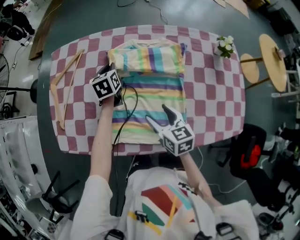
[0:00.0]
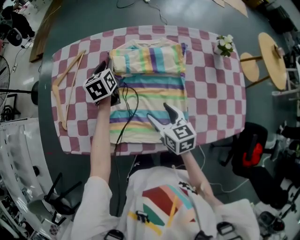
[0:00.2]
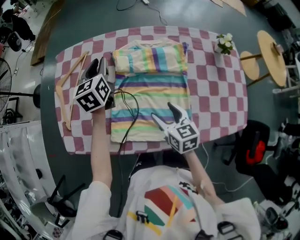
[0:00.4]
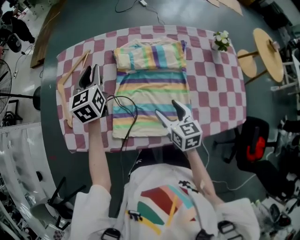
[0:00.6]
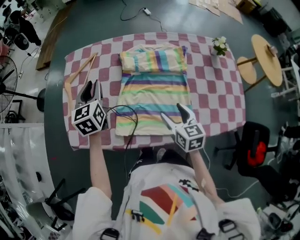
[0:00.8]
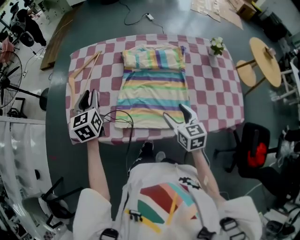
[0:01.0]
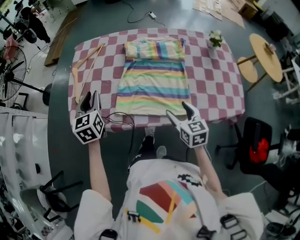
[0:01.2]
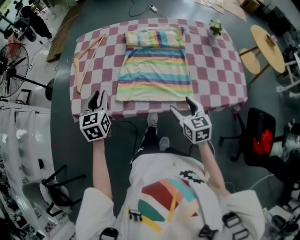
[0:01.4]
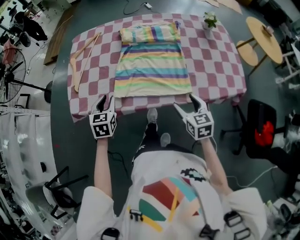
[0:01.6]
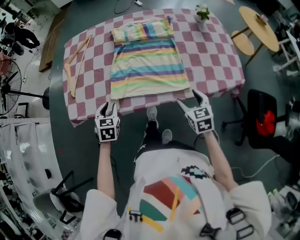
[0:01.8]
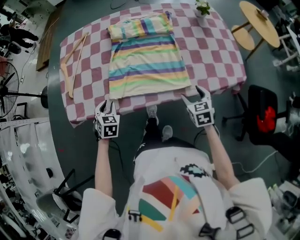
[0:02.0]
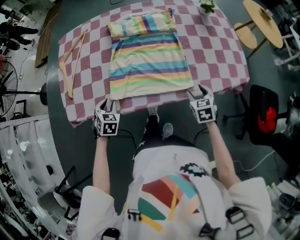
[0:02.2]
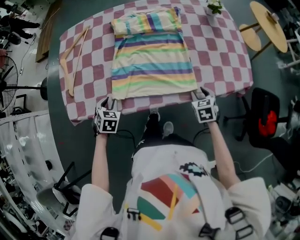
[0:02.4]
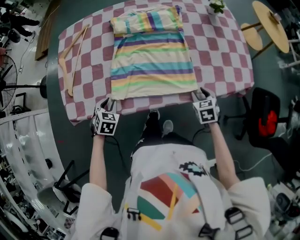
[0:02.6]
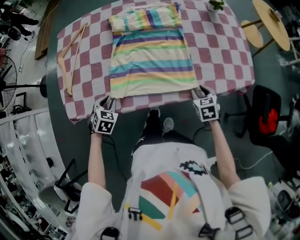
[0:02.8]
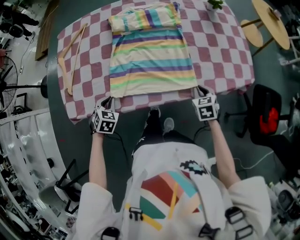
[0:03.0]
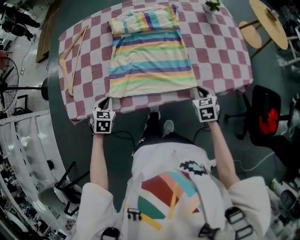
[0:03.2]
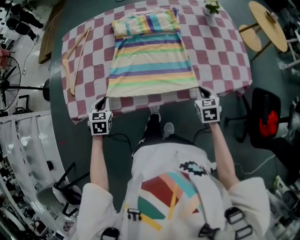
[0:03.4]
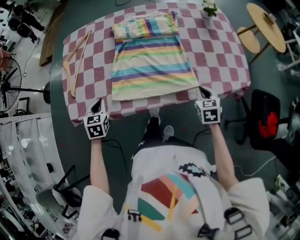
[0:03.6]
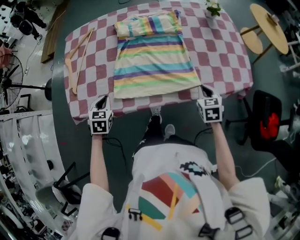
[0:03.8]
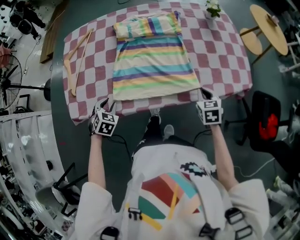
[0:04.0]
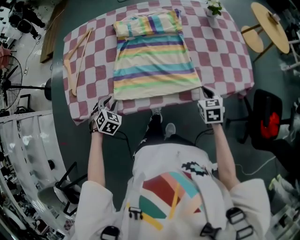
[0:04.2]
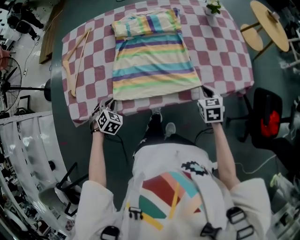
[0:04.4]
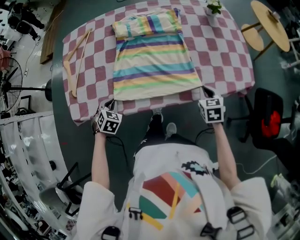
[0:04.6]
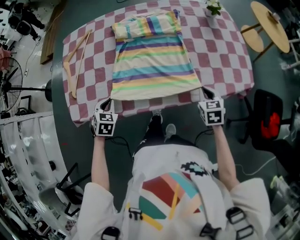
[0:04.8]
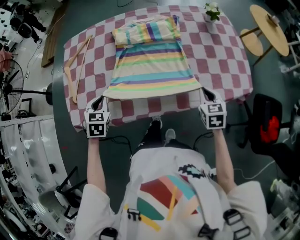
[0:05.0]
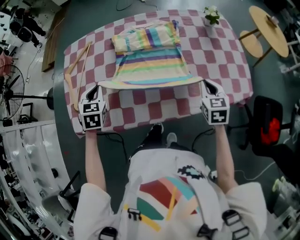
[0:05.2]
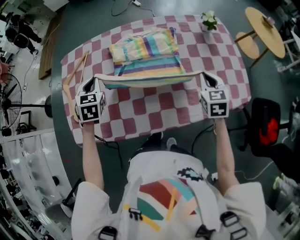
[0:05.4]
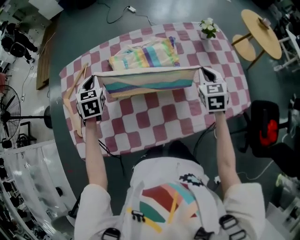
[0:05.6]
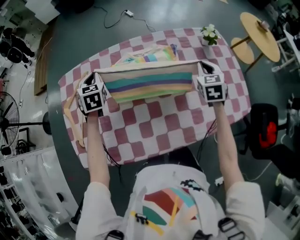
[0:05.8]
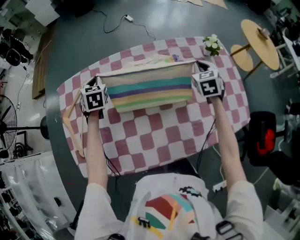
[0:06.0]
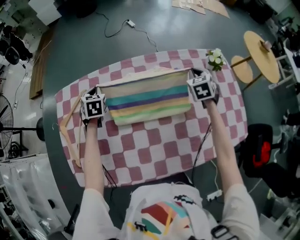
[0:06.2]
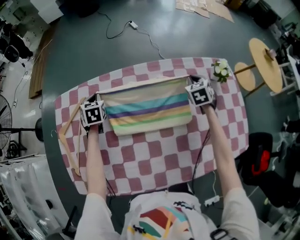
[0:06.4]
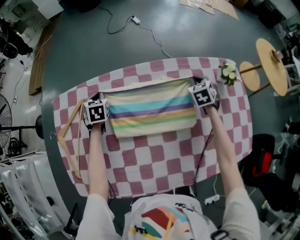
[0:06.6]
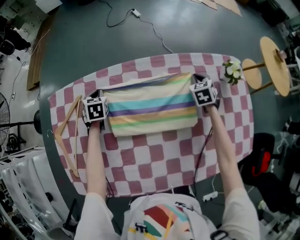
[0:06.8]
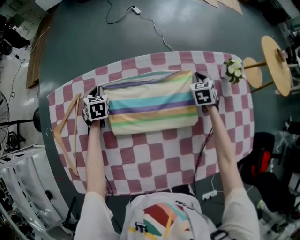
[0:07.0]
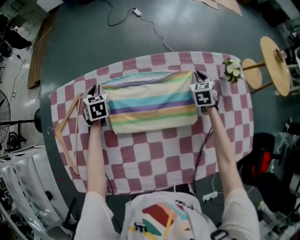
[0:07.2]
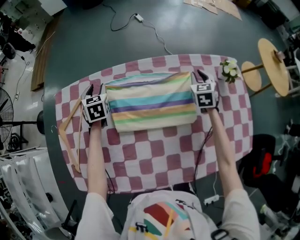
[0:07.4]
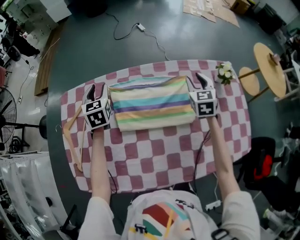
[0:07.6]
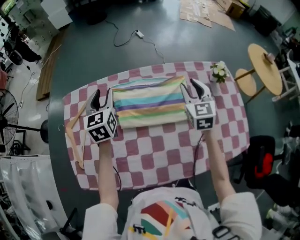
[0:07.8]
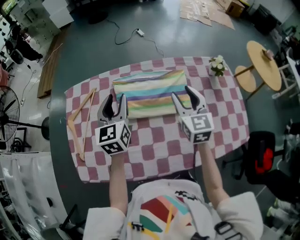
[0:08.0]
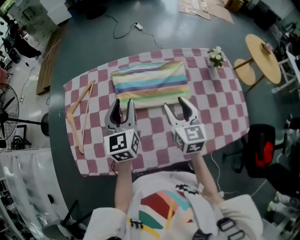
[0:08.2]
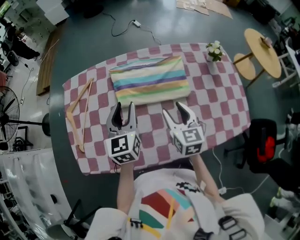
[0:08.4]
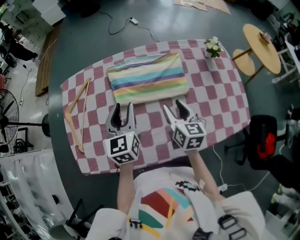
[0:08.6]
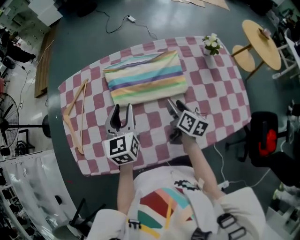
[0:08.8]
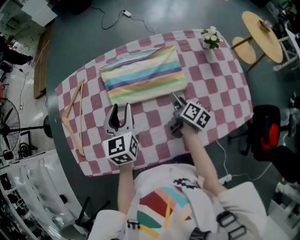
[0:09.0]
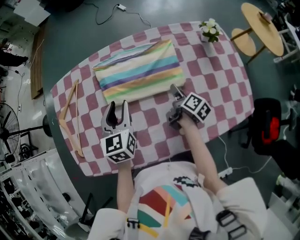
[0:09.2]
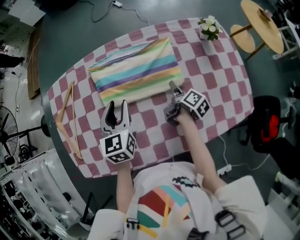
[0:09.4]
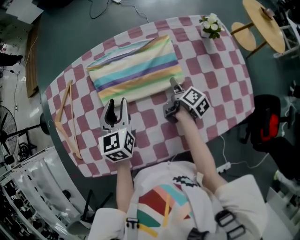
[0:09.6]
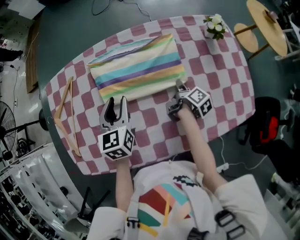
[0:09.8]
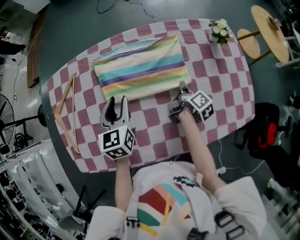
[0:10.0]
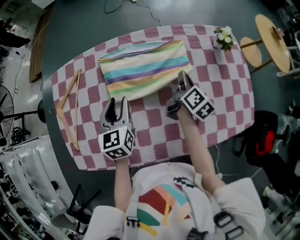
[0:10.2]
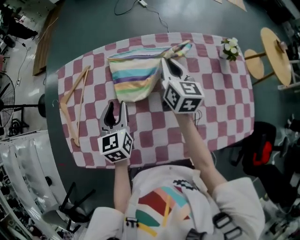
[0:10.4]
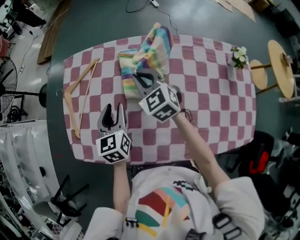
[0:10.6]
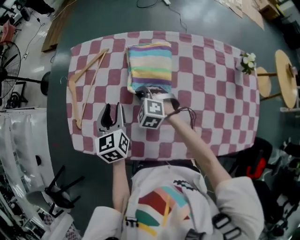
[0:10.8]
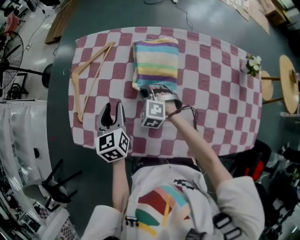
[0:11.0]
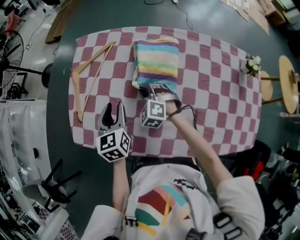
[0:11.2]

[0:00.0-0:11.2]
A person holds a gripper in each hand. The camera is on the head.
0.0 to 1.6 s: The left gripper is displaced backward and to the left by roughly 40 cm, and swivels some 20 degrees. The right gripper shifts roughly 25 cm backward.
1.6 to 3.2 s: The left gripper moves downward, some 10 cm, and turns by approximately 20 degrees; the right gripper heads to the right and downward, covering approximately 10 cm, rotates roughly 20 degrees, and closes up.
3.2 to 4.8 s: The left gripper moves up and down over some 5 cm, changing direction 2 times, and opens and closes again.
4.8 to 6.4 s: The pair of grippers is taken forward, some 50 cm. The left gripper rotates about 20 degrees.
6.4 to 8.0 s: The right gripper travels backward, upward and to the left by some 25 cm, tilts its fingers approximately 30 degrees upward, and opens up. Meanwhile the left gripper shifts some 25 cm upward, backward and to the right, tilts its fingers approximately 30 degrees upward, and opens.
8.0 to 9.6 s: The left gripper heads downward and to the right, covering approximately 10 cm, while the right gripper heads downward, covering approximately 25 cm, and twists approximately 80 degrees clockwise, seen from behind.
9.6 to 11.2 s: The left gripper moves some 20 cm, and swivels about 30 degrees, while the right gripper travels upward and back again, approximately 20 cm each way, twists about 140 degrees counterclockwise, seen from behind, and closes up.

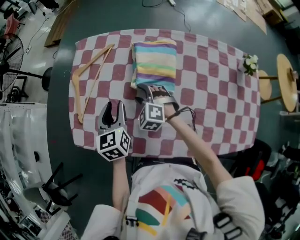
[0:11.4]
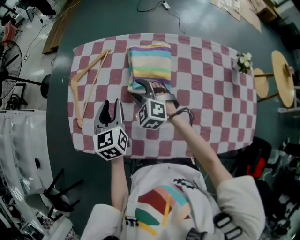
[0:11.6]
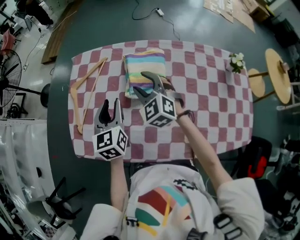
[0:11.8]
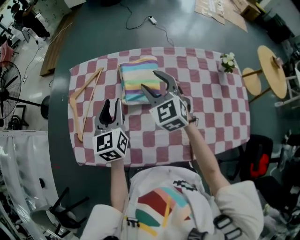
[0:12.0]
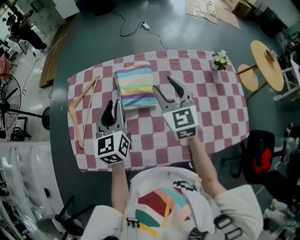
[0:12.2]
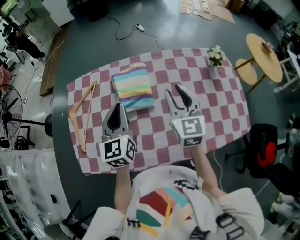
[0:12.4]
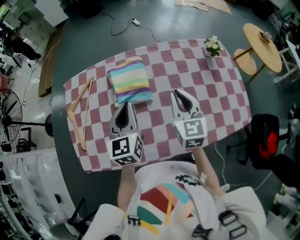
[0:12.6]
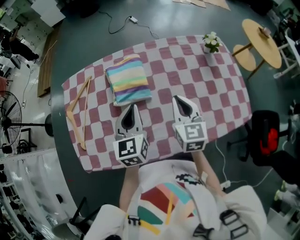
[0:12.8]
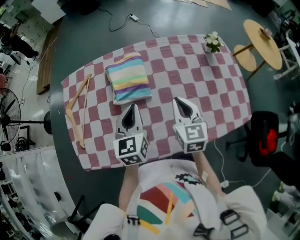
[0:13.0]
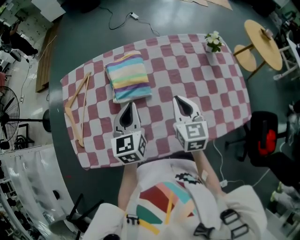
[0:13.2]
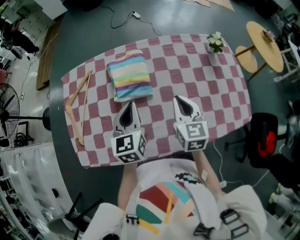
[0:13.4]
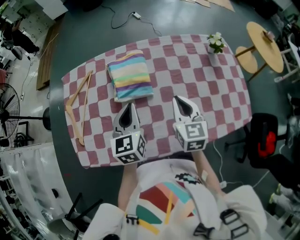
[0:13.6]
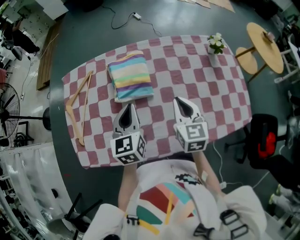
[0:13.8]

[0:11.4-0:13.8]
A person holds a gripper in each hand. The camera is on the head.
11.4 to 12.6 s: The right gripper moves about 30 cm, tilts its fingers some 30 degrees upward, and closes its fingers; the left gripper changes place by roughly 20 cm, turns by about 30 degrees, and closes up.
12.6 to 13.8 s: The right gripper ends up some 5 cm from where it was.

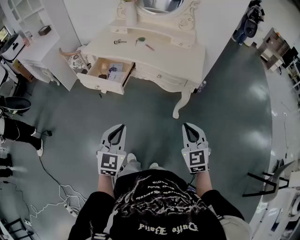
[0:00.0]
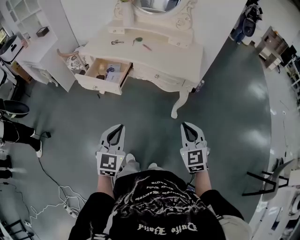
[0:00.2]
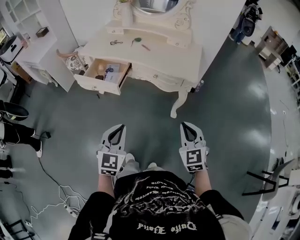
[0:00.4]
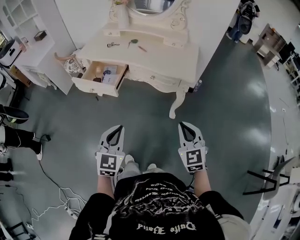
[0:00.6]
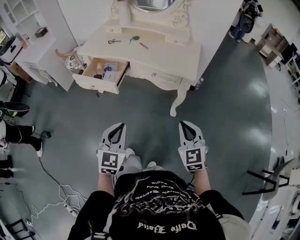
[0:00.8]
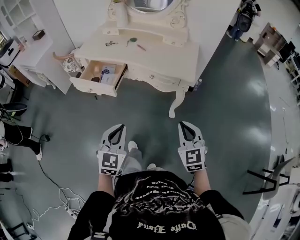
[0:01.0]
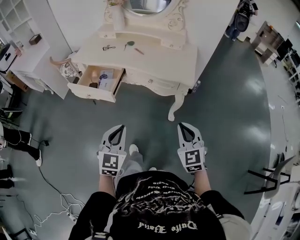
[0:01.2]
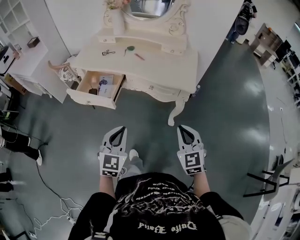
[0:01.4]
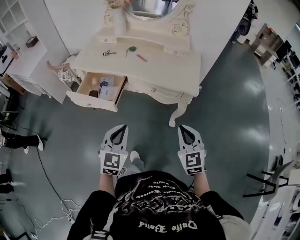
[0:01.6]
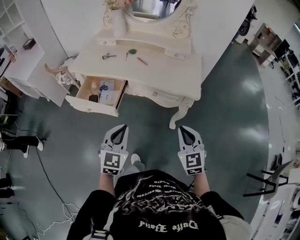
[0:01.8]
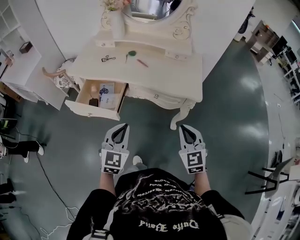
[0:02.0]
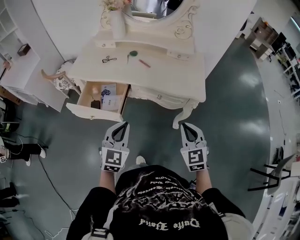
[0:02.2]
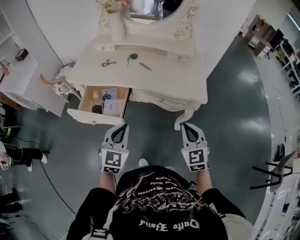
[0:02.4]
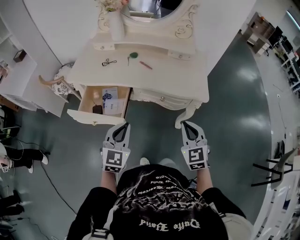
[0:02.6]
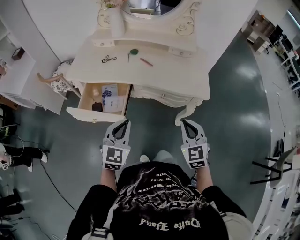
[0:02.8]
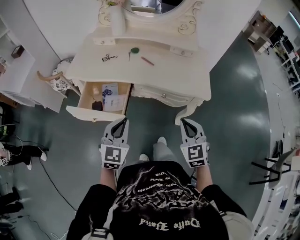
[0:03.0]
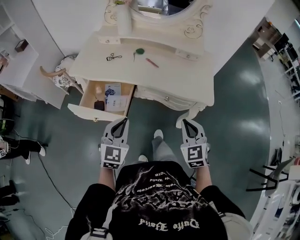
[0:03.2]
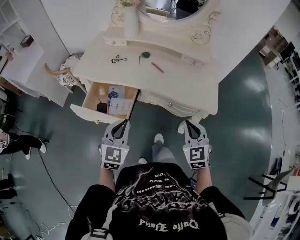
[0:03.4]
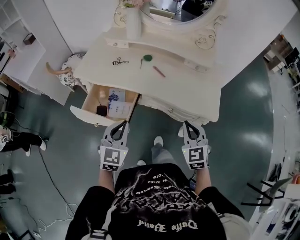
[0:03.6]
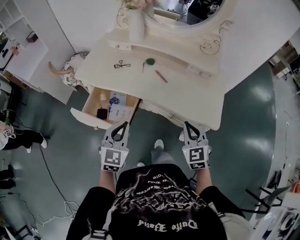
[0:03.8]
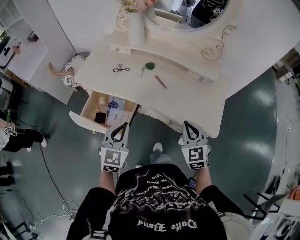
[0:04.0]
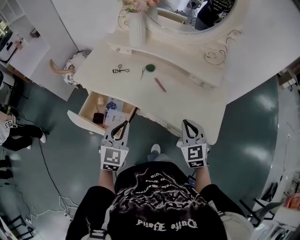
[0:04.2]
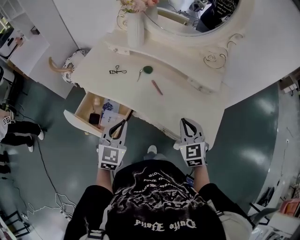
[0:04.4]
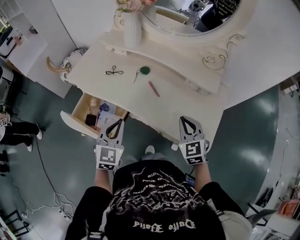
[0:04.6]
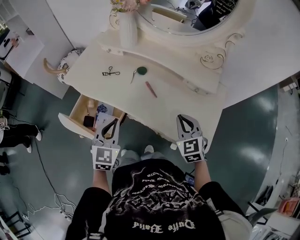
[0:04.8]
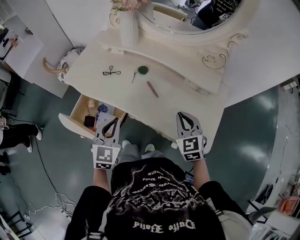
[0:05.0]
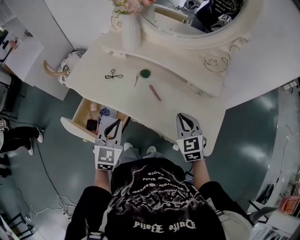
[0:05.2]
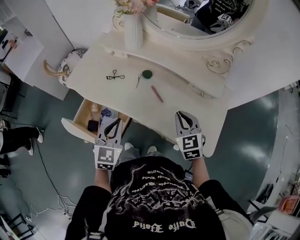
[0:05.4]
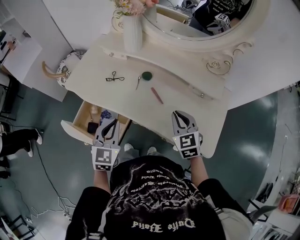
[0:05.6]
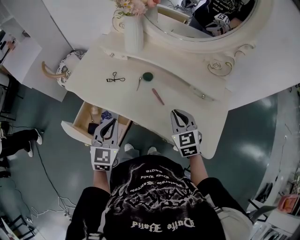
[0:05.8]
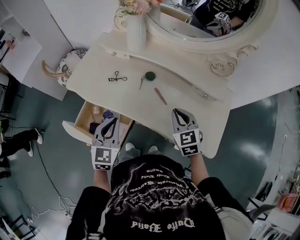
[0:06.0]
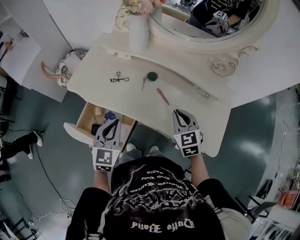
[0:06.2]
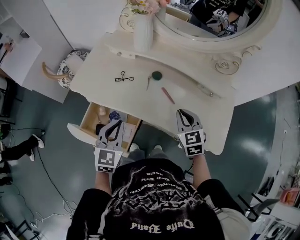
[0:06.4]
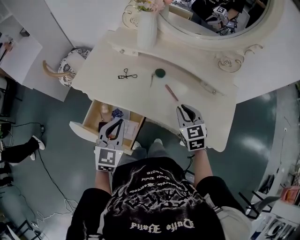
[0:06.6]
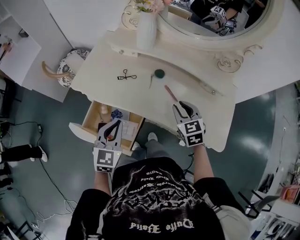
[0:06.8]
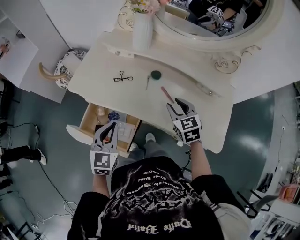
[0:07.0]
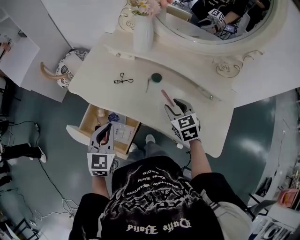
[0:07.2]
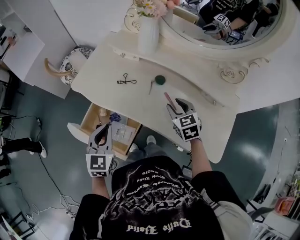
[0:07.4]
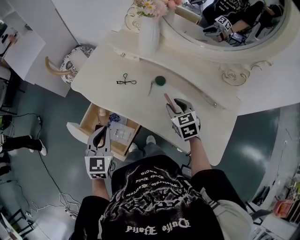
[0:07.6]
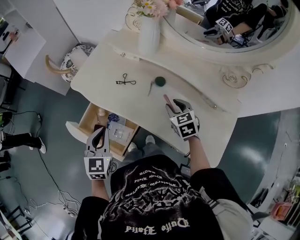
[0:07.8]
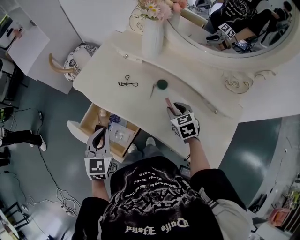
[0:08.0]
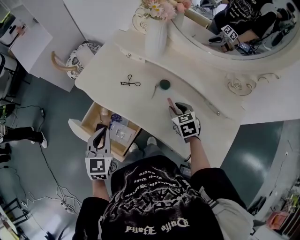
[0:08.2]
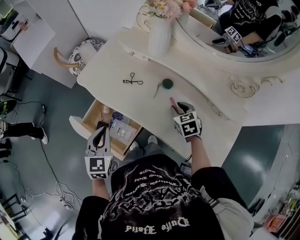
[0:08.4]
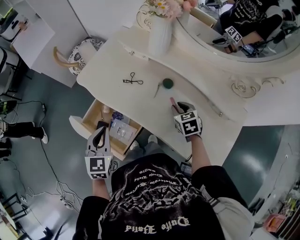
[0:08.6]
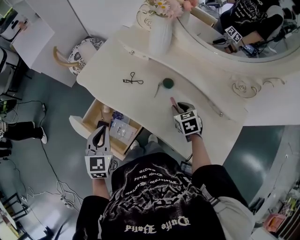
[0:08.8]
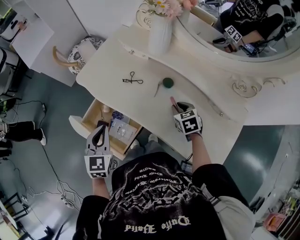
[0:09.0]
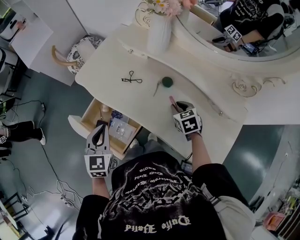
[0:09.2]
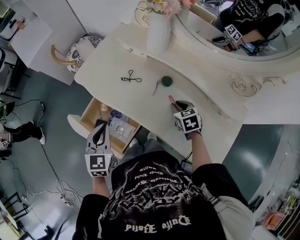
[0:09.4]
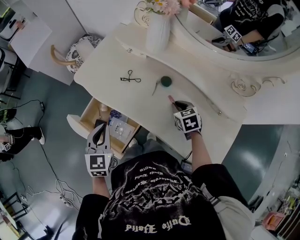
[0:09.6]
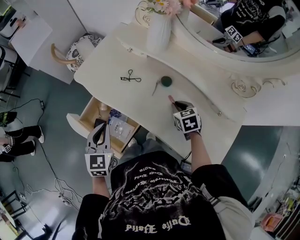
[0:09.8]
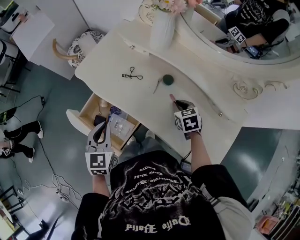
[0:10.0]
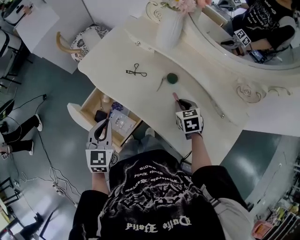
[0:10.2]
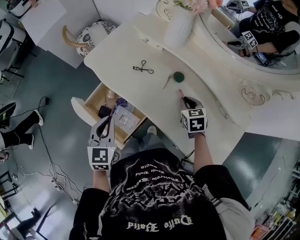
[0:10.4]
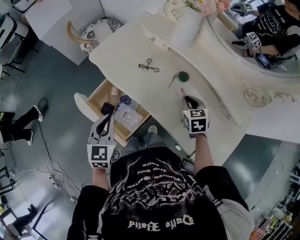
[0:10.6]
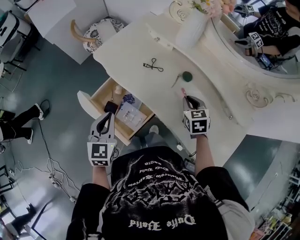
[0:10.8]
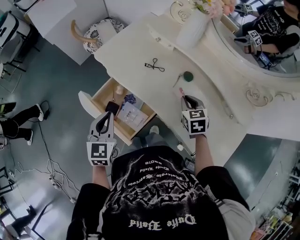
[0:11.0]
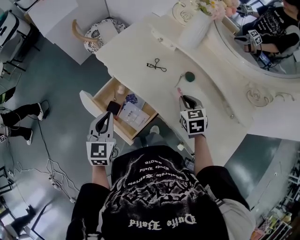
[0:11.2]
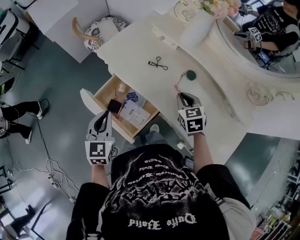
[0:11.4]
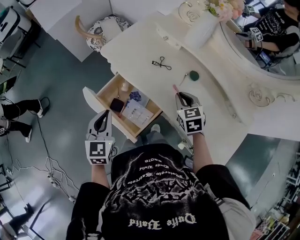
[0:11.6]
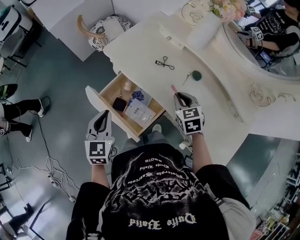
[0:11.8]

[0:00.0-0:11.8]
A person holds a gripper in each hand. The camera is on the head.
0.0 to 1.4 s: The grippers both shift forward by approximately 10 cm.
1.4 to 3.0 s: Both grippers move forward and to the left, about 20 cm.
3.0 to 4.4 s: Both grippers travel together forward, about 20 cm.
4.4 to 6.0 s: Both grippers move forward and to the left, approximately 10 cm.
6.0 to 7.4 s: The right gripper shifts roughly 5 cm forward, and opens up. The left gripper moves to the left, some 10 cm.
7.4 to 8.8 s: The right gripper goes about 10 cm downward.
8.8 to 10.4 s: The grippers make only small movements.
10.4 to 11.8 s: The two grippers go about 15 cm to the left.
